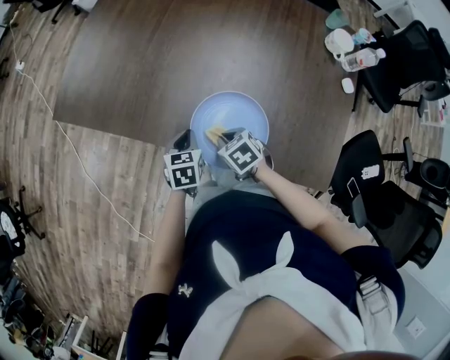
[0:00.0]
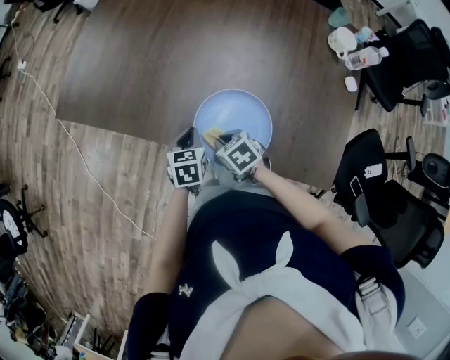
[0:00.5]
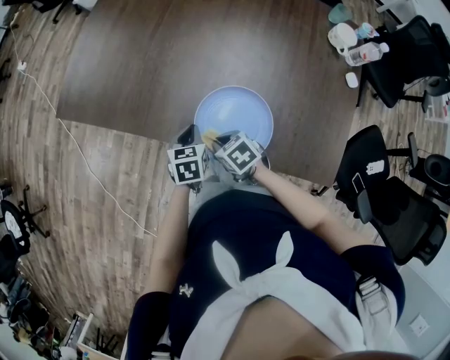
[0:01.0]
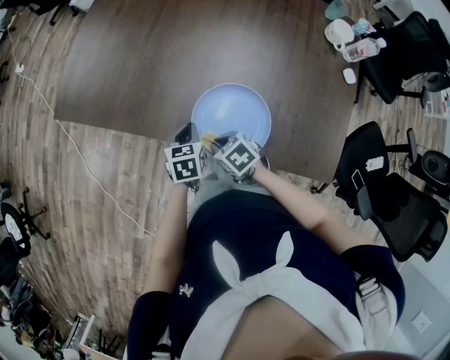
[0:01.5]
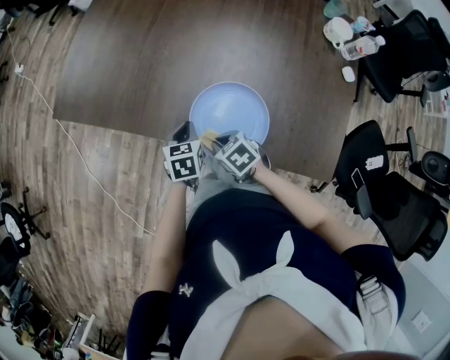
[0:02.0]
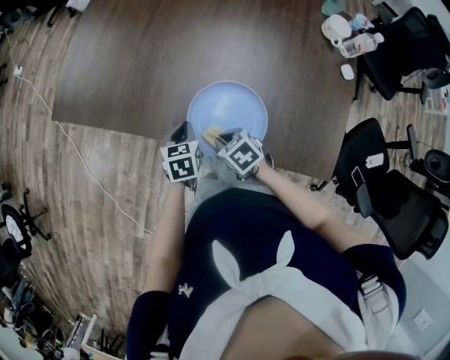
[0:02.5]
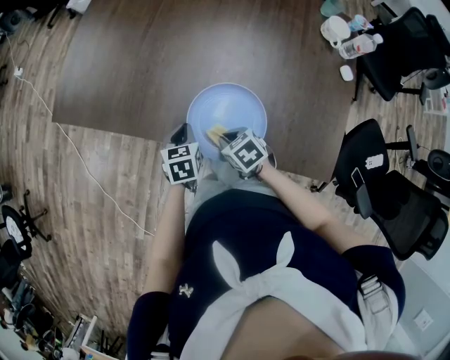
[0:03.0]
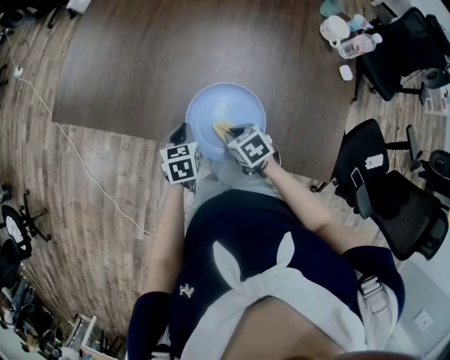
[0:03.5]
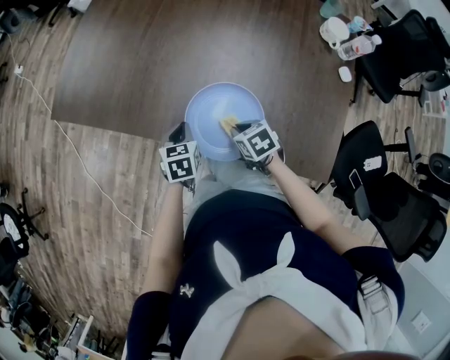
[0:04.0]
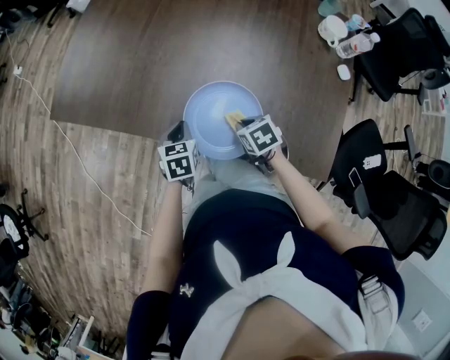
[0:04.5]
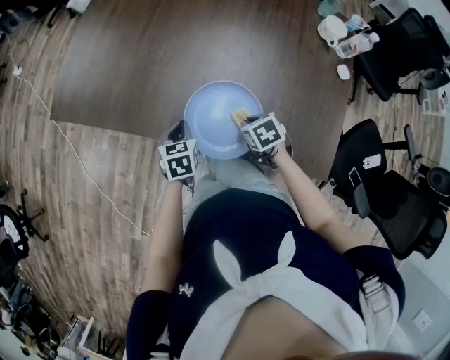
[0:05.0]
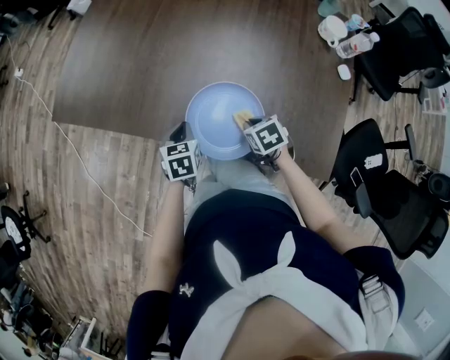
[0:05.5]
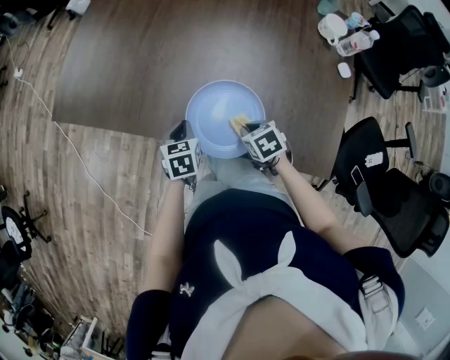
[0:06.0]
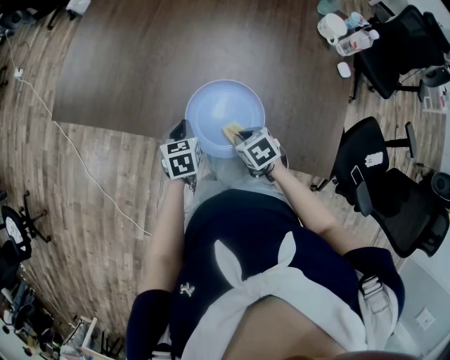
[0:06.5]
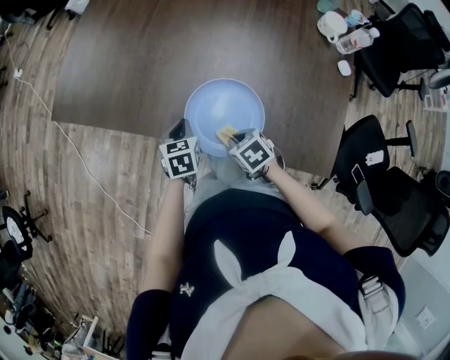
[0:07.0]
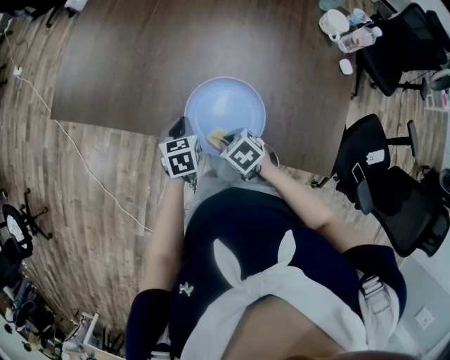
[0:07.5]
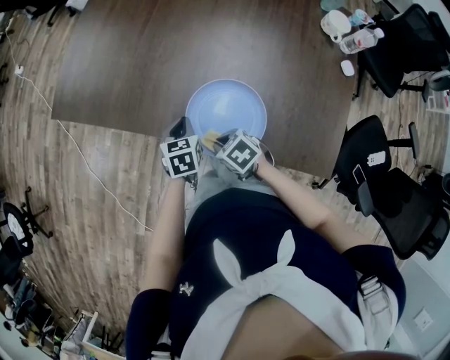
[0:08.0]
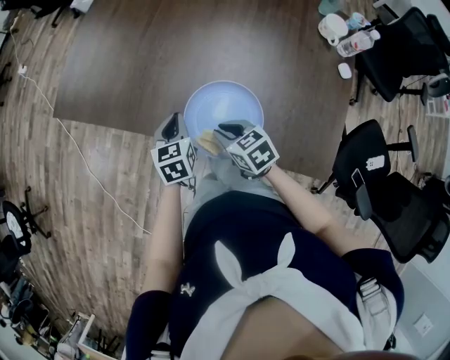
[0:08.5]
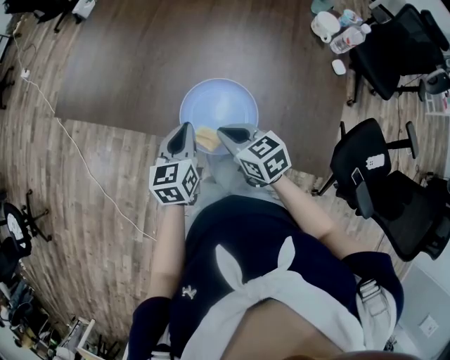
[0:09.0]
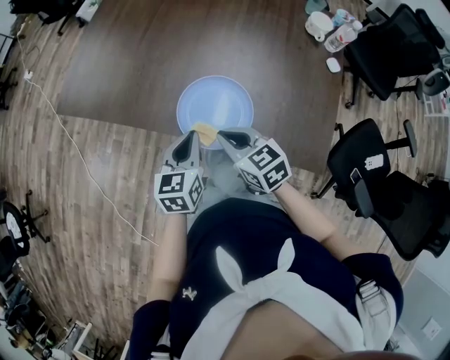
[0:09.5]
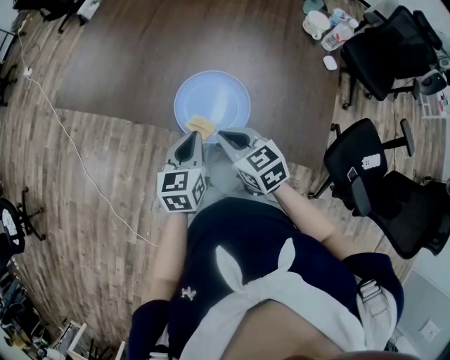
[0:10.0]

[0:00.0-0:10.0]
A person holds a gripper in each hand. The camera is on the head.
0:00.0 to 0:02.0: The right gripper moves roughly 5 cm.
0:02.0 to 0:04.0: The right gripper moves to the right, roughly 10 cm.
0:04.0 to 0:06.0: There are only small adjustments of the grippers.
0:06.0 to 0:08.0: The right gripper travels to the left by approximately 10 cm, and swivels approximately 20 degrees.
0:08.0 to 0:10.0: The left gripper is displaced backward and upward by some 20 cm, and changes its angle by about 20 degrees; the right gripper goes approximately 15 cm upward and backward, and changes its angle by about 30 degrees.

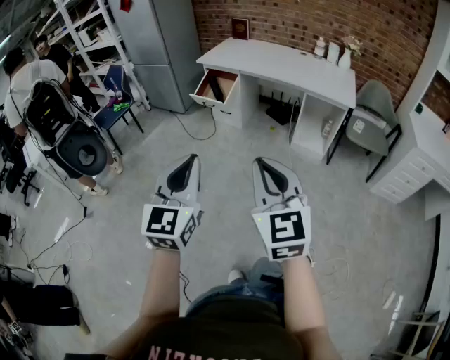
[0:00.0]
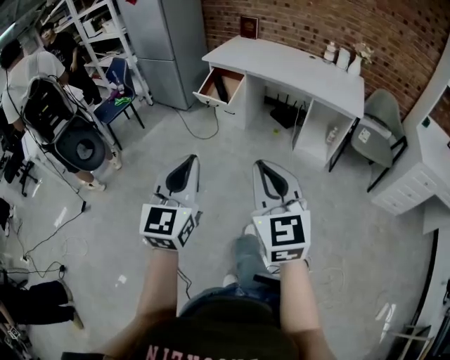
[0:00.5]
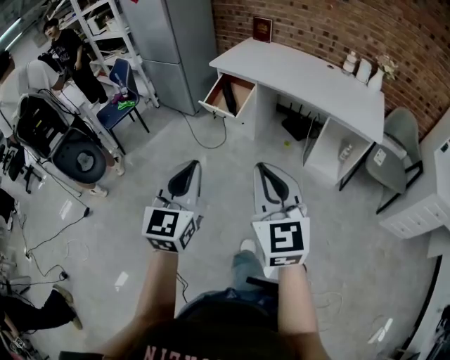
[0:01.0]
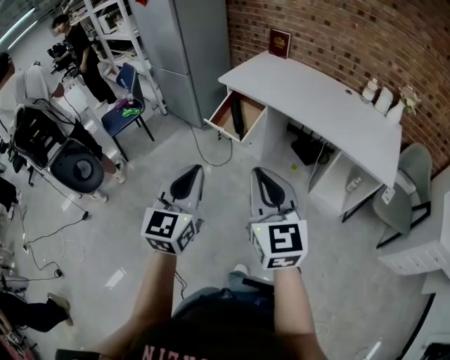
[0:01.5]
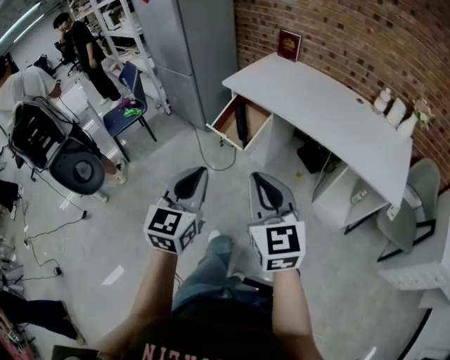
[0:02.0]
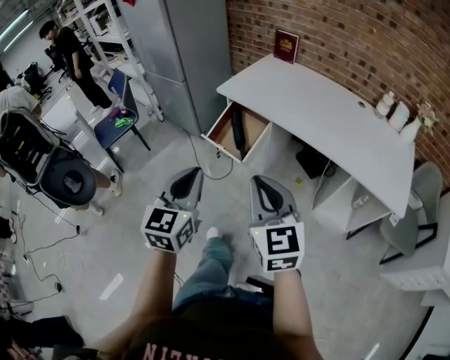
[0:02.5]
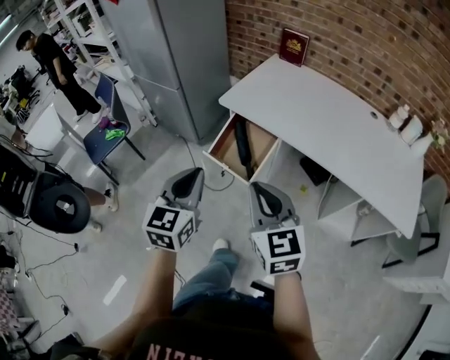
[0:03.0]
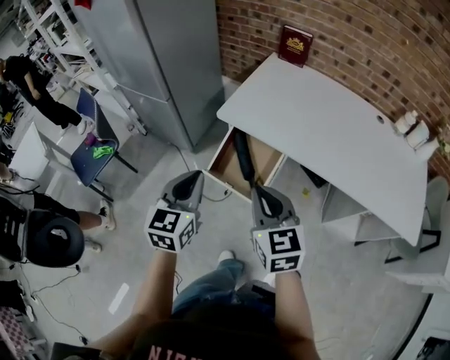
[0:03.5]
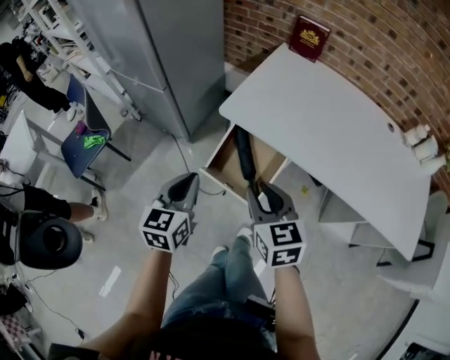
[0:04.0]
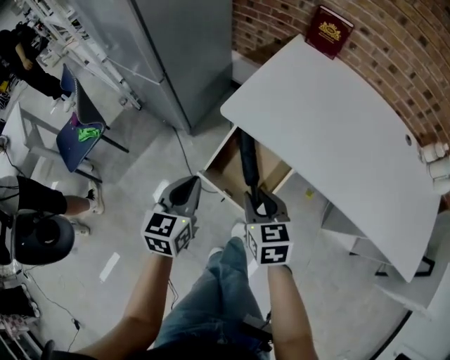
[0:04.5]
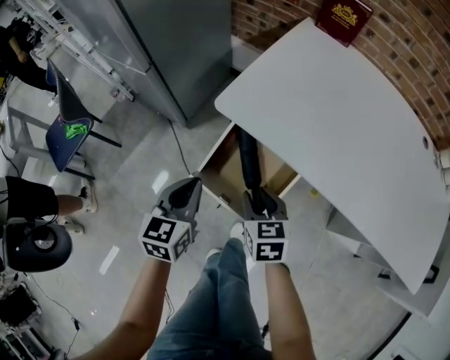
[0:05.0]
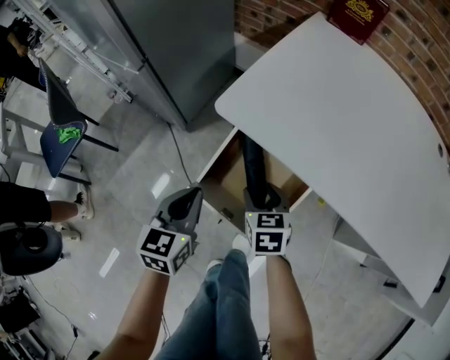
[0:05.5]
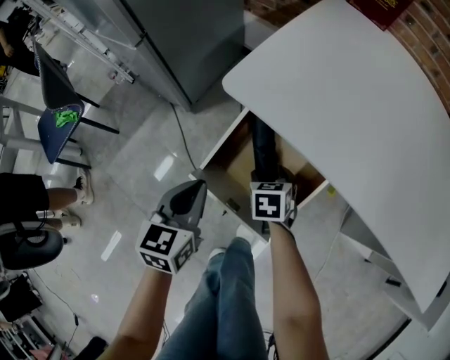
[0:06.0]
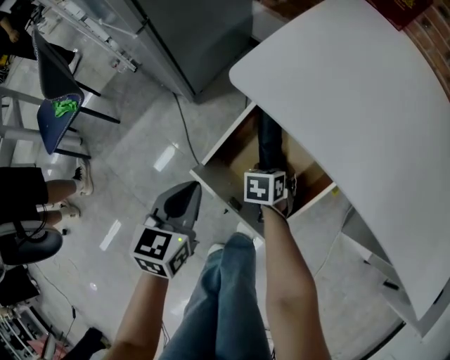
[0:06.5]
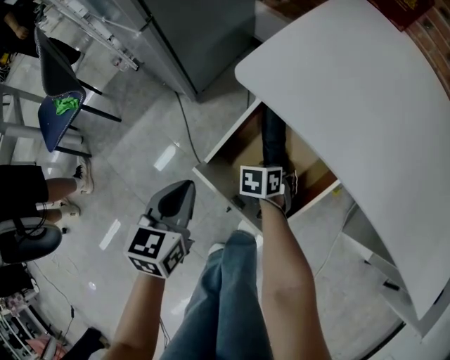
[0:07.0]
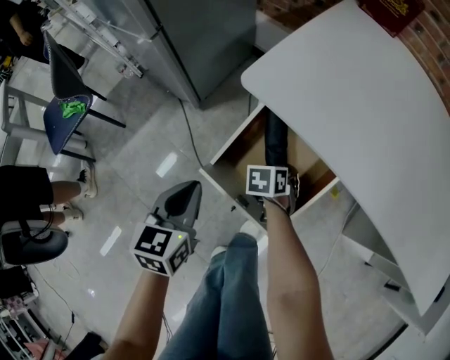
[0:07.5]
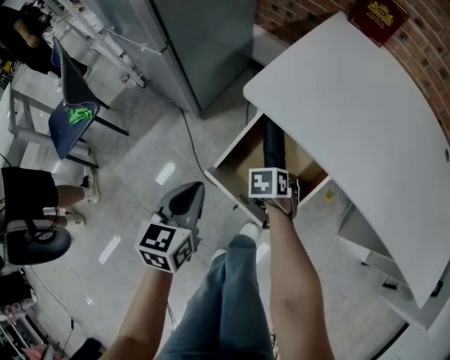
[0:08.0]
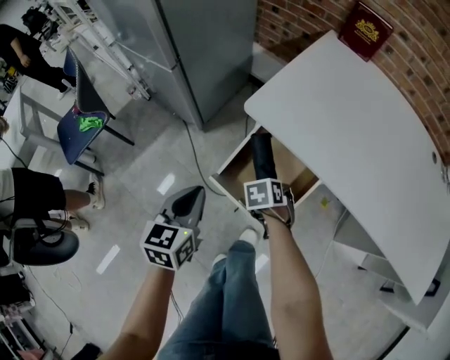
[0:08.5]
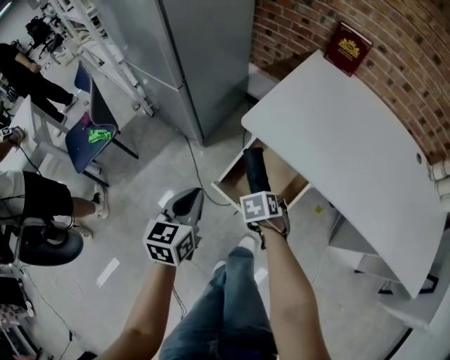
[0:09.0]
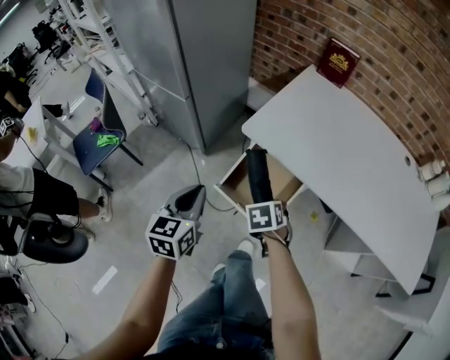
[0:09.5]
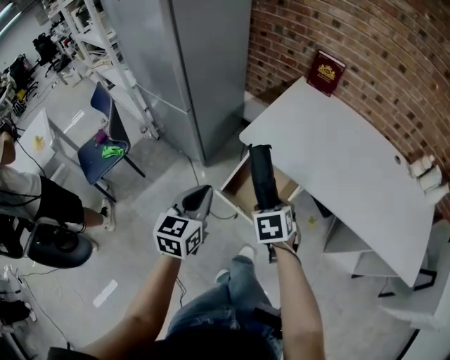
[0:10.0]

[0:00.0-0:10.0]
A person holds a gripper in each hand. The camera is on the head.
0:00.0 to 0:02.0: The two grippers travel together, forward, roughly 50 cm.
0:02.0 to 0:04.0: Both grippers are carried forward, about 50 cm. The right gripper changes its angle by approximately 20 degrees.
0:04.0 to 0:06.0: The left gripper is displaced downward and forward by about 25 cm. Meanwhile the right gripper moves downward and forward, about 50 cm, points its fingers about 30 degrees further downward, and opens.
0:06.0 to 0:08.0: The right gripper swivels roughly 20 degrees. The left gripper shifts by roughly 5 cm.
0:08.0 to 0:10.0: The grippers both shift upward by roughly 25 cm. The right gripper rotates approximately 20 degrees.

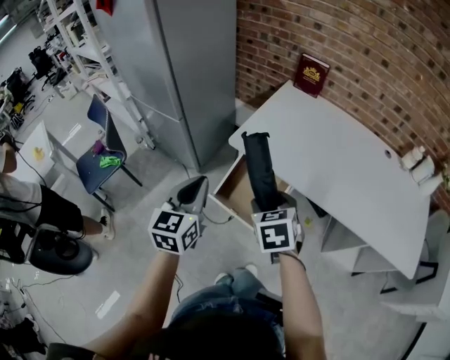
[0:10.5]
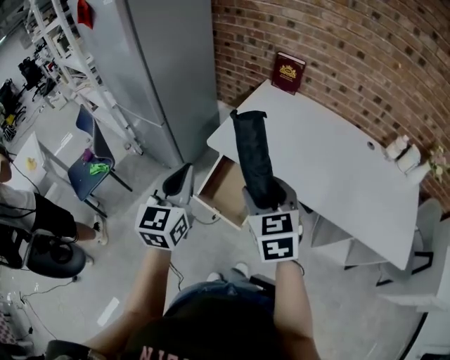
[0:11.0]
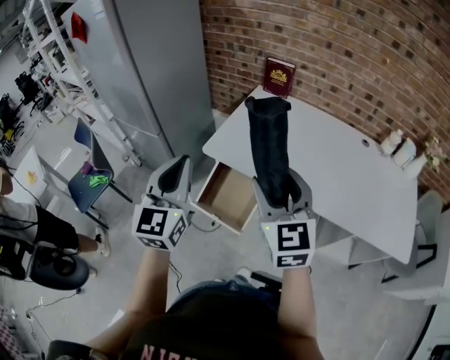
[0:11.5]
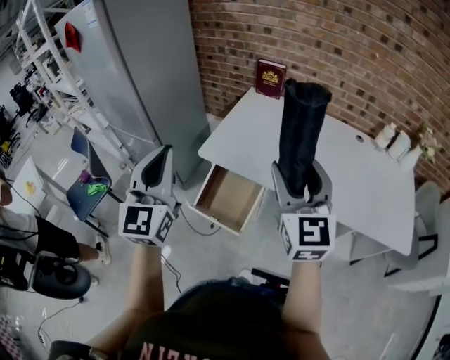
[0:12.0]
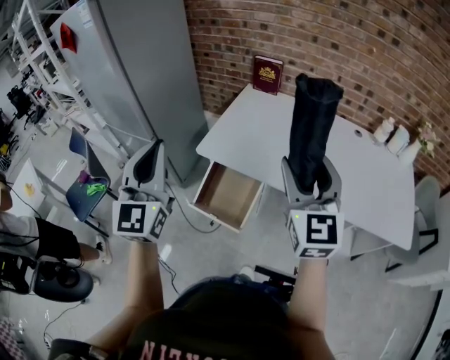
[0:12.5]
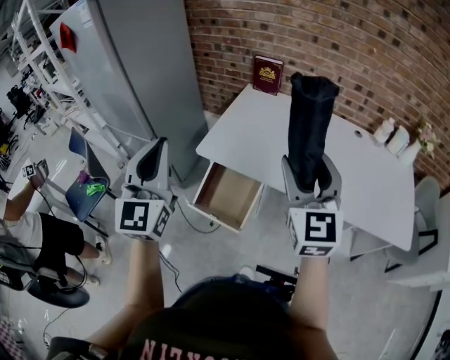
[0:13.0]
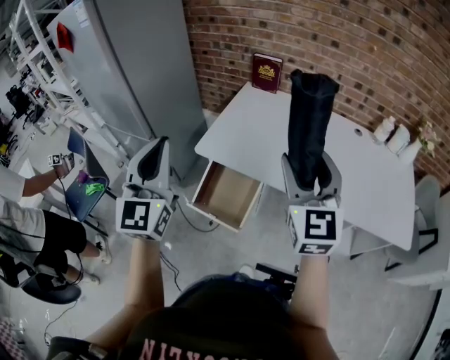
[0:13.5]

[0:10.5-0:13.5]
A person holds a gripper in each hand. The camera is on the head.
0:10.5 to 0:12.0: The left gripper goes about 20 cm upward, and rotates approximately 30 degrees; the right gripper is displaced upward and to the right by approximately 25 cm, and points its fingers some 50 degrees further upward.
0:12.0 to 0:13.5: The grippers move only a little.

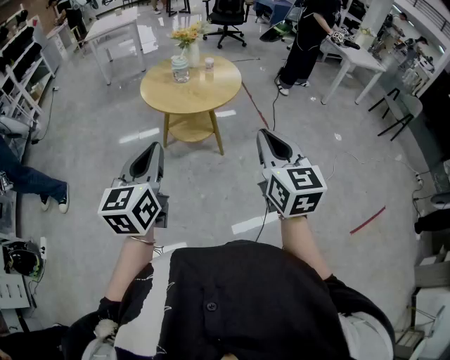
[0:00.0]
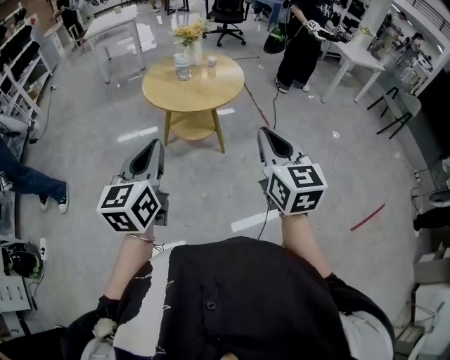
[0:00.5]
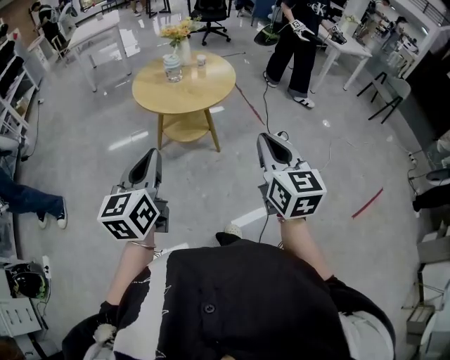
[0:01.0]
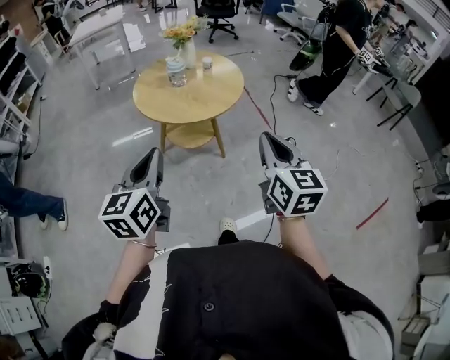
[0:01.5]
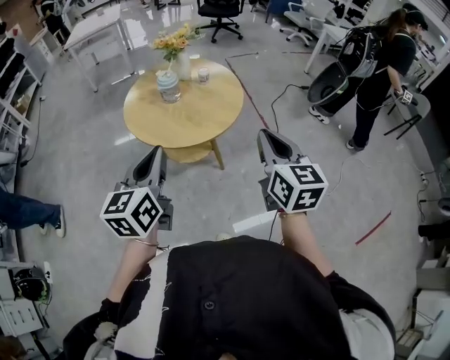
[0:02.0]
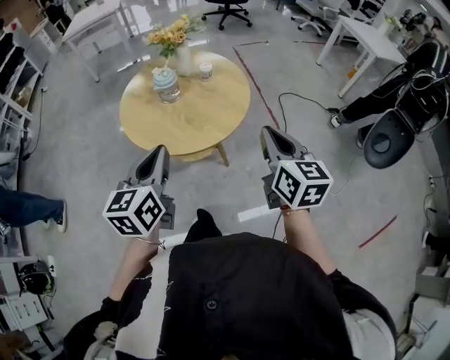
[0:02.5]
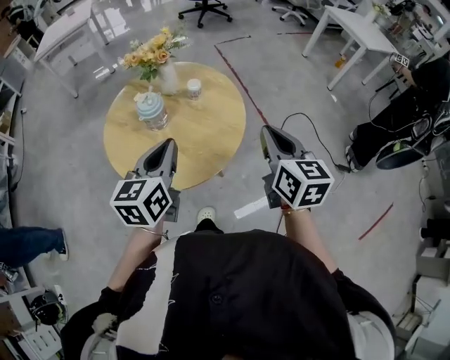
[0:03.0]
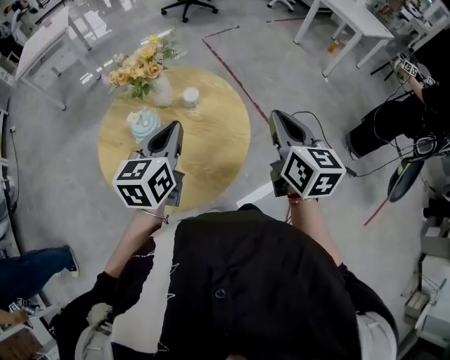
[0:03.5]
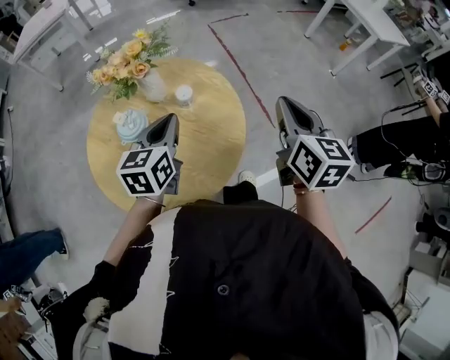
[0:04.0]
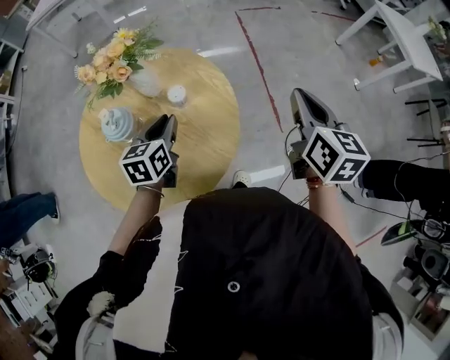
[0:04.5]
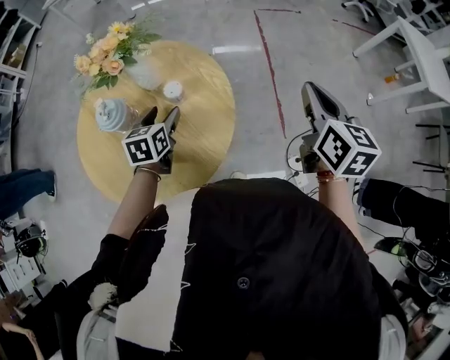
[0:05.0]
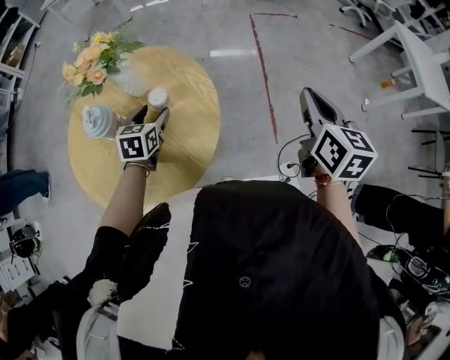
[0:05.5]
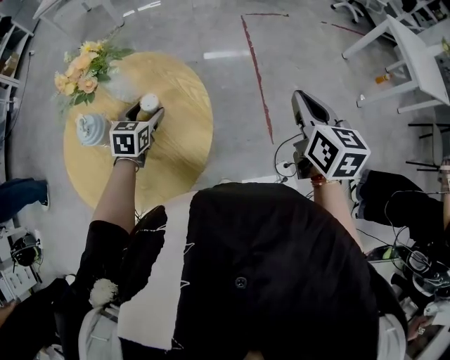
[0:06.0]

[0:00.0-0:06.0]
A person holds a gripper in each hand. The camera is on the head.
0:00.0 to 0:02.0: Both grippers move forward, approximately 25 cm.
0:02.0 to 0:04.0: The two grippers go some 40 cm forward.
0:04.0 to 0:06.0: The left gripper moves downward and forward, roughly 20 cm, turns by about 30 degrees, and opens up. The right gripper goes roughly 20 cm forward and to the right.
